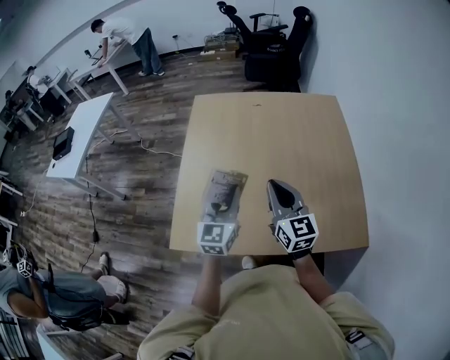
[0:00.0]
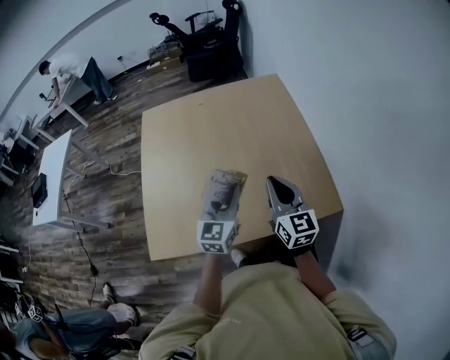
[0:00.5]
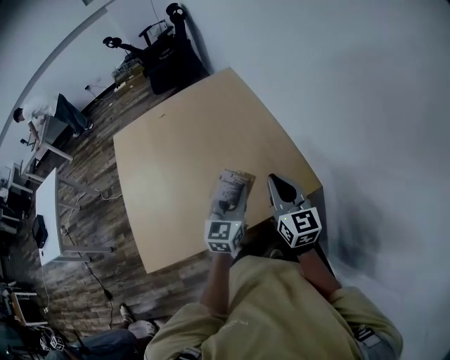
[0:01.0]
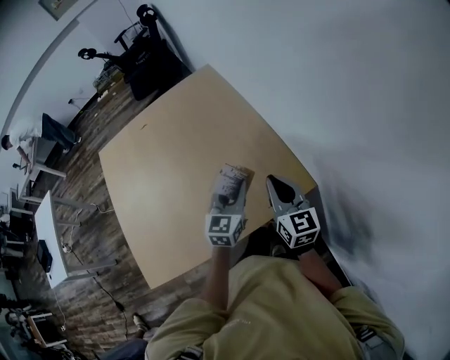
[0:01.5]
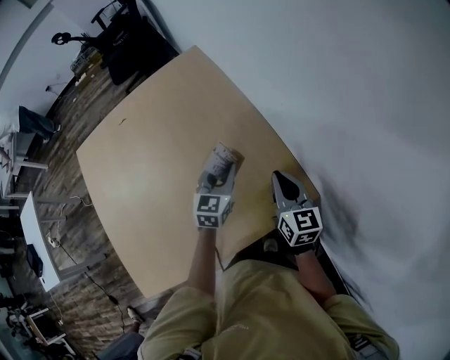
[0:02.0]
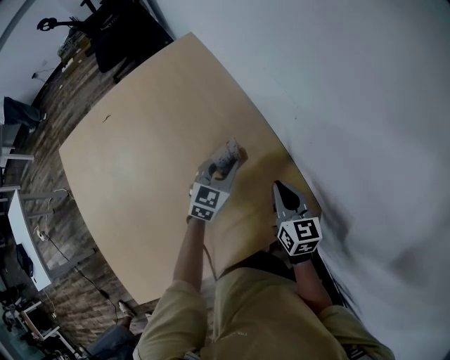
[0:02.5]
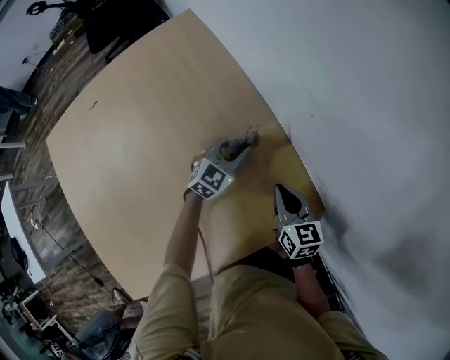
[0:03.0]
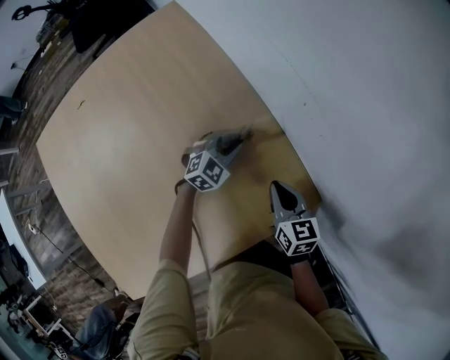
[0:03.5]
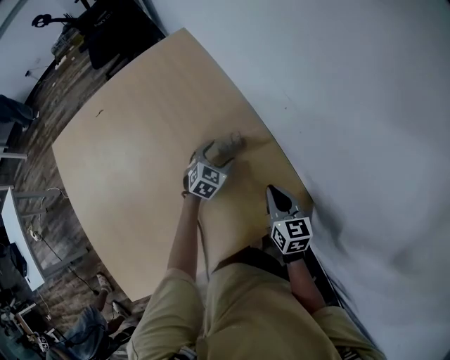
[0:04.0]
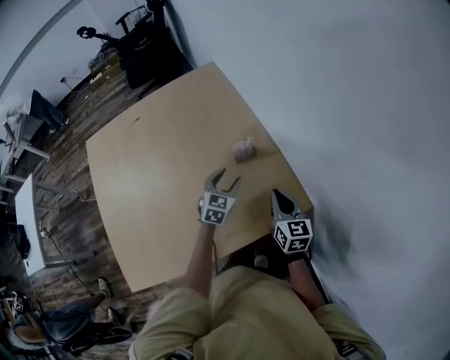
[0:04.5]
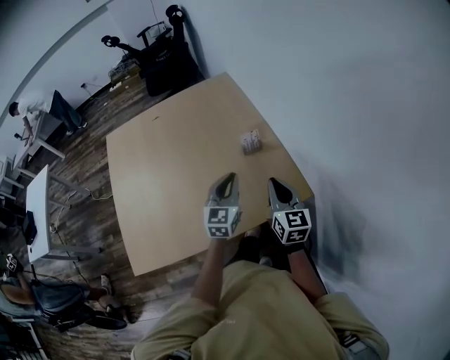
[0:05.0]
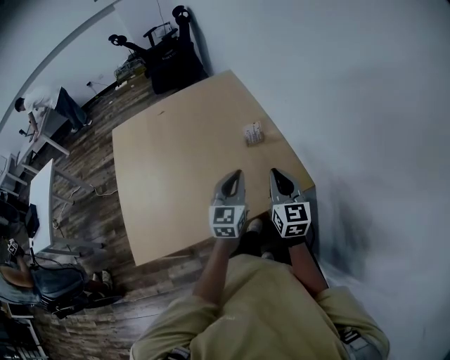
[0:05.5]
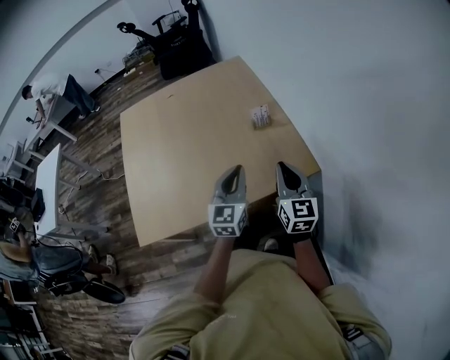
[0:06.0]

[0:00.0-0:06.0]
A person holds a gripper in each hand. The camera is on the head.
0.0 to 2.0 s: Both grippers are carried about 50 cm. The left gripper changes its angle by about 40 degrees; the right gripper swivels approximately 40 degrees.
2.0 to 4.0 s: The right gripper shifts about 10 cm downward, while the left gripper moves downward, about 15 cm, turns by about 30 degrees, and opens up.
4.0 to 6.0 s: The right gripper shifts approximately 30 cm backward and upward, and rotates about 30 degrees; the left gripper heads backward and upward, covering roughly 50 cm, tilts its fingers approximately 40 degrees upward, and closes its fingers.

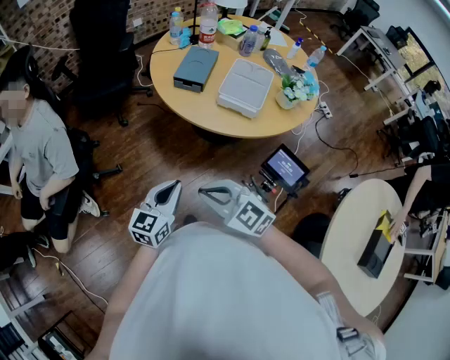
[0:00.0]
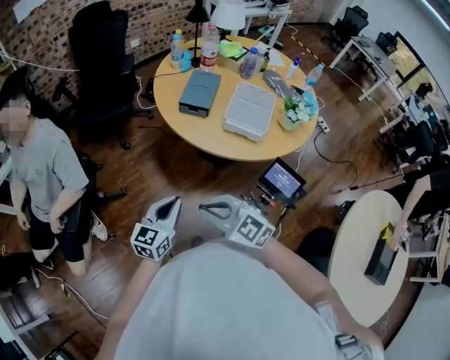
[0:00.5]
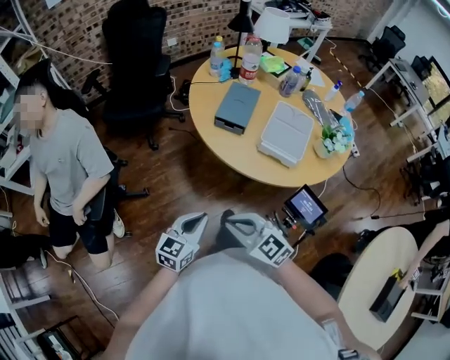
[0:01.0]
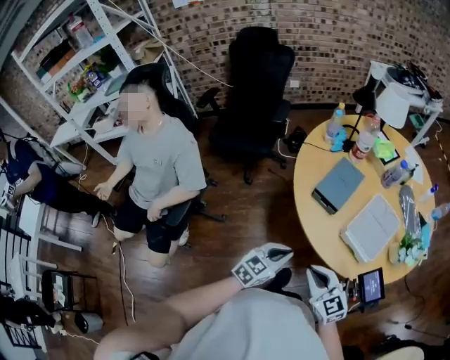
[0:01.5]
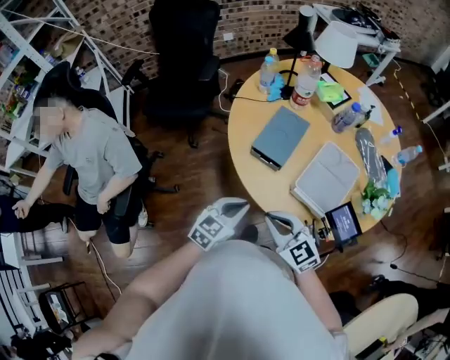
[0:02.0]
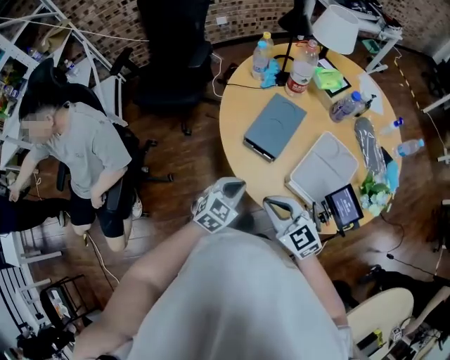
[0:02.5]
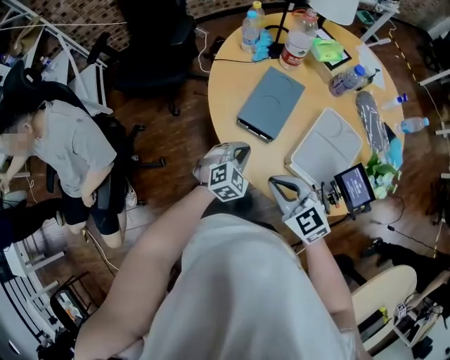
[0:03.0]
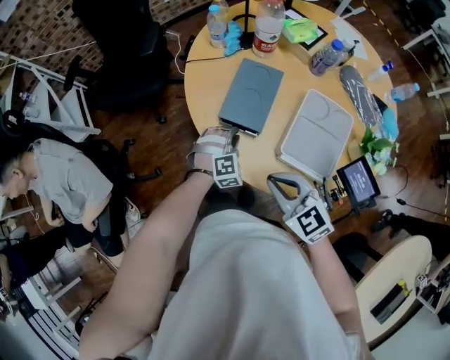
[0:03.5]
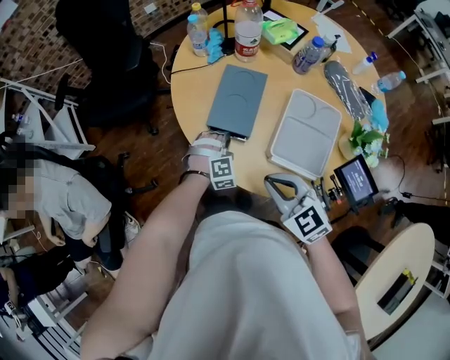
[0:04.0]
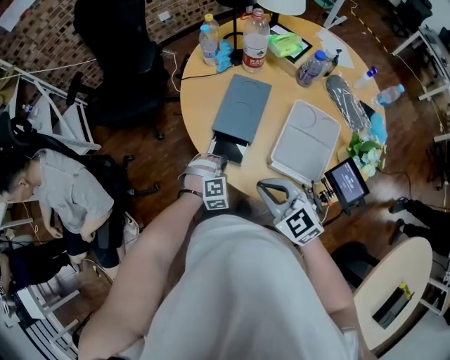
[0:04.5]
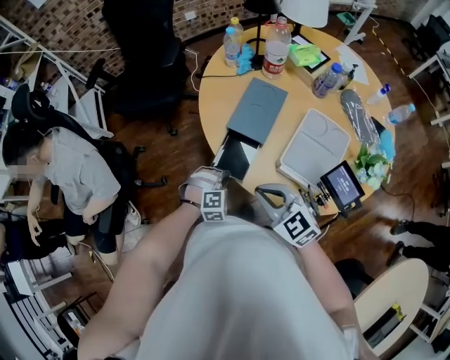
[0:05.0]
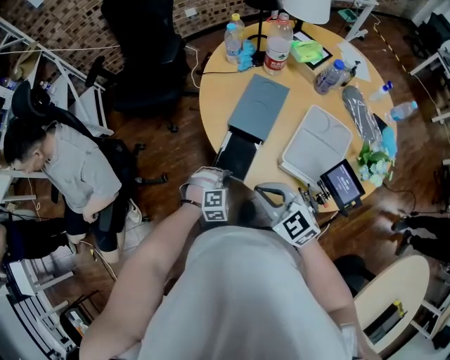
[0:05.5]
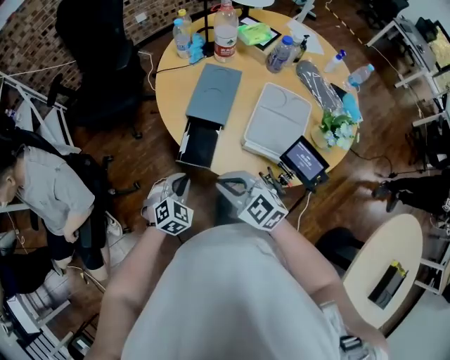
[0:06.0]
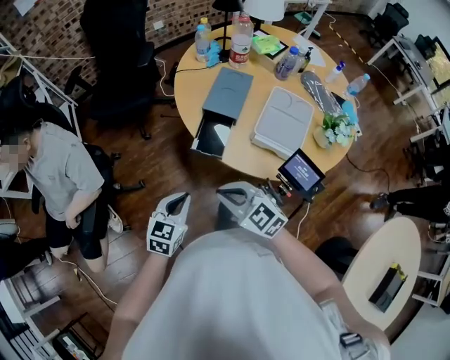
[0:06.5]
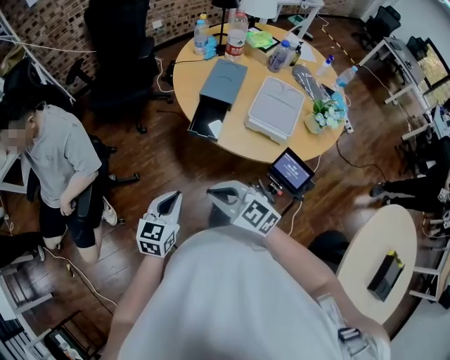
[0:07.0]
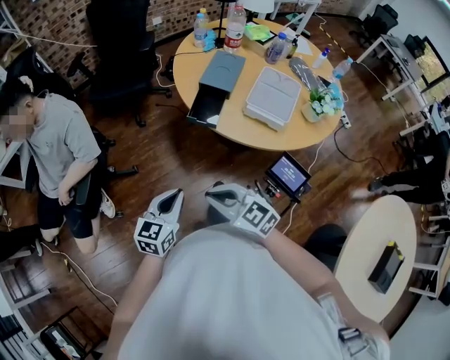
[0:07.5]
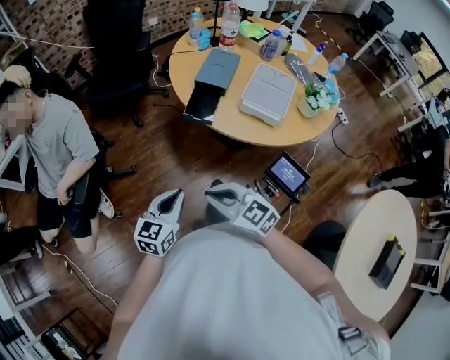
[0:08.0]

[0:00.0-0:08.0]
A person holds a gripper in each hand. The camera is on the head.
0.0 to 2.0 s: Both grippers travel together forward, about 25 cm.
2.0 to 4.0 s: The right gripper heads to the right and forward, covering some 10 cm. Meanwhile the left gripper travels forward, downward and to the right by approximately 25 cm, and twists about 70 degrees clockwise, seen from behind.
4.0 to 6.0 s: The left gripper shifts about 20 cm backward, to the left and upward, and rotates approximately 40 degrees, while the right gripper travels to the left by about 10 cm.
6.0 to 8.0 s: The left gripper is displaced backward, upward and to the left by some 30 cm, and twists about 40 degrees counterclockwise, seen from behind. The right gripper moves backward and to the left, approximately 25 cm.

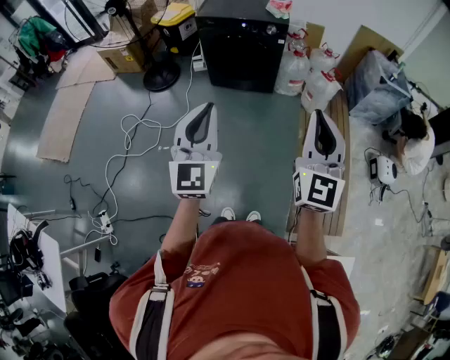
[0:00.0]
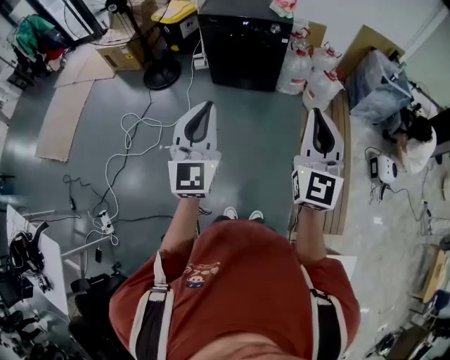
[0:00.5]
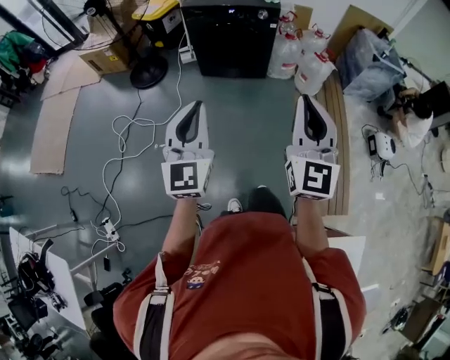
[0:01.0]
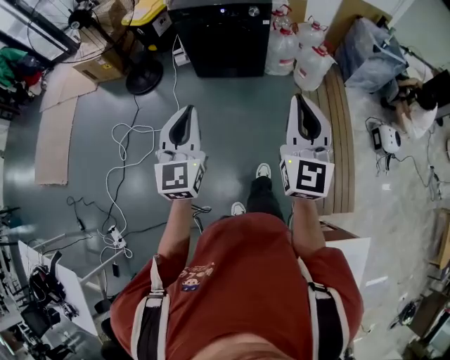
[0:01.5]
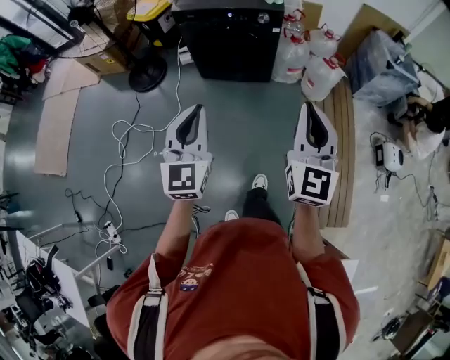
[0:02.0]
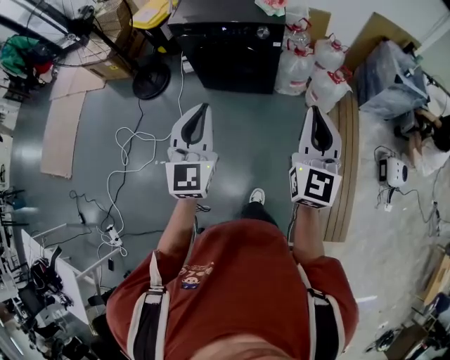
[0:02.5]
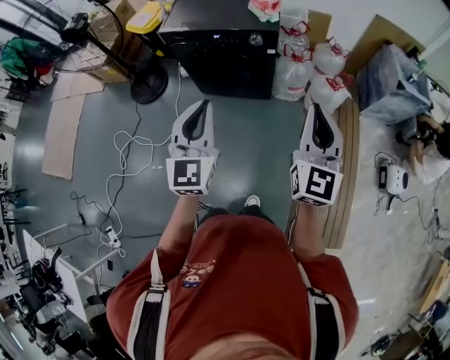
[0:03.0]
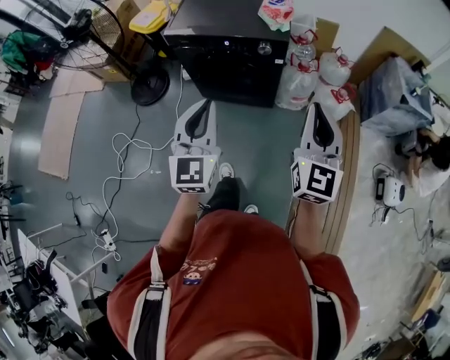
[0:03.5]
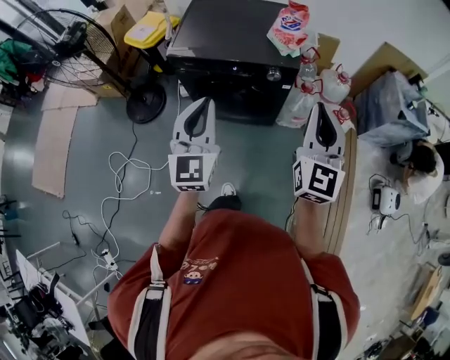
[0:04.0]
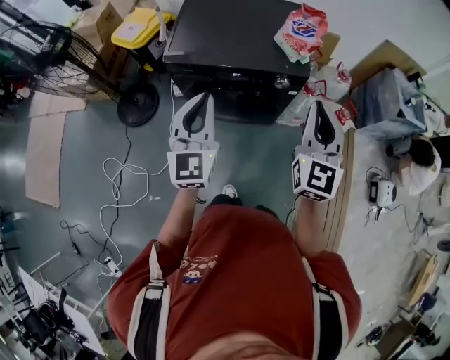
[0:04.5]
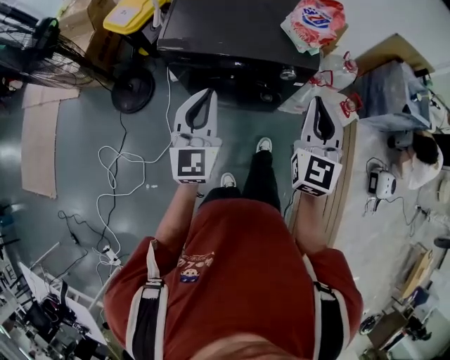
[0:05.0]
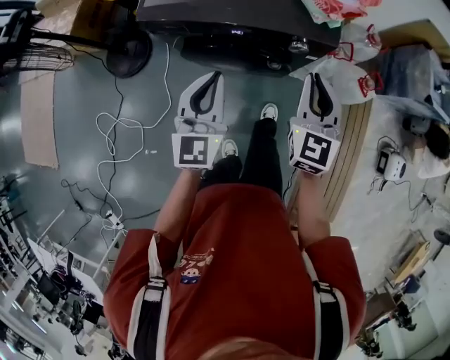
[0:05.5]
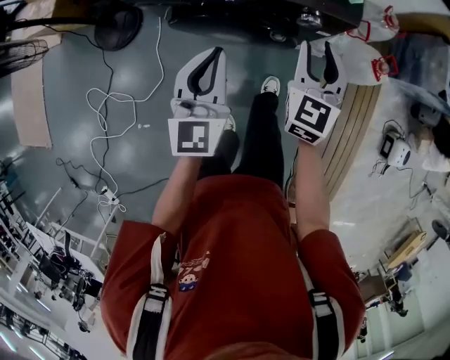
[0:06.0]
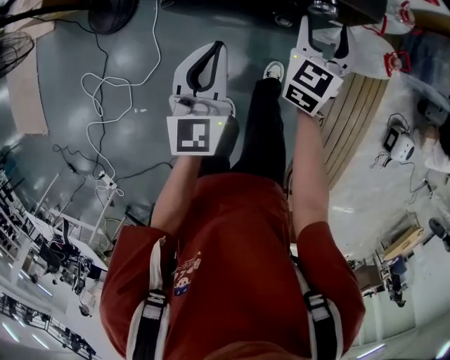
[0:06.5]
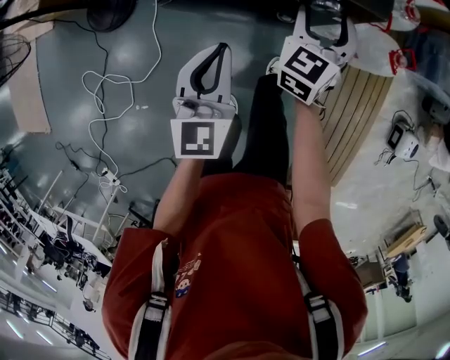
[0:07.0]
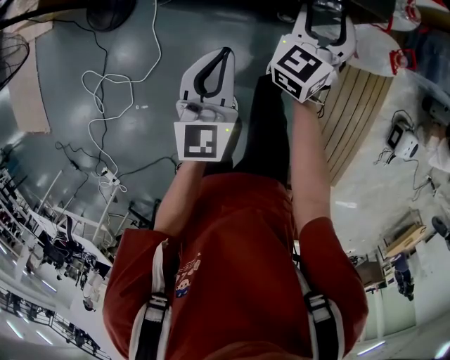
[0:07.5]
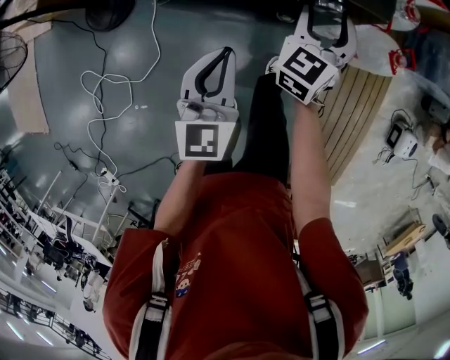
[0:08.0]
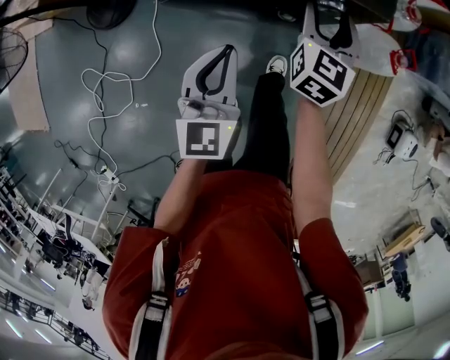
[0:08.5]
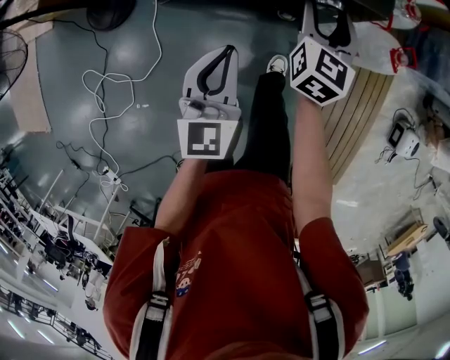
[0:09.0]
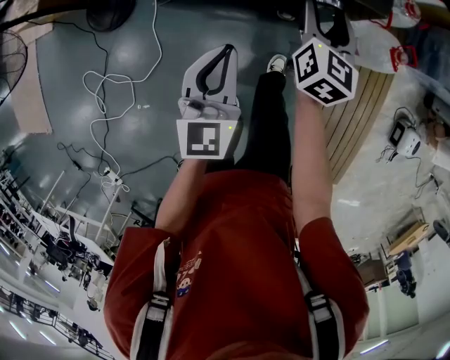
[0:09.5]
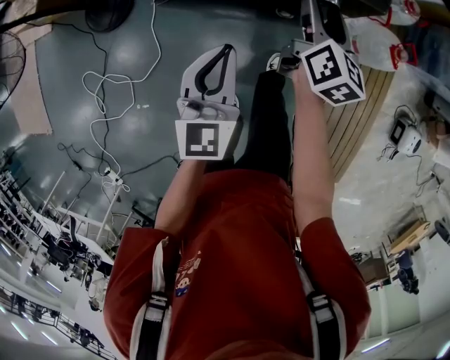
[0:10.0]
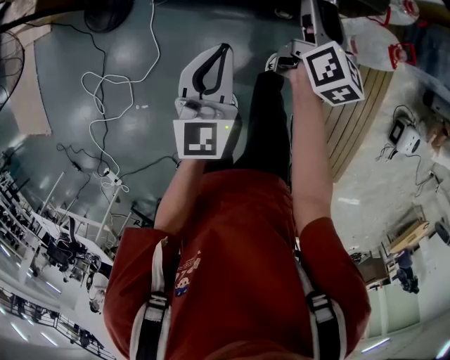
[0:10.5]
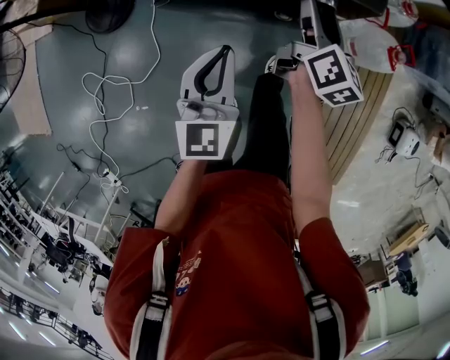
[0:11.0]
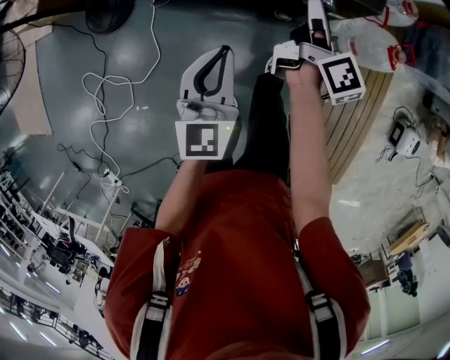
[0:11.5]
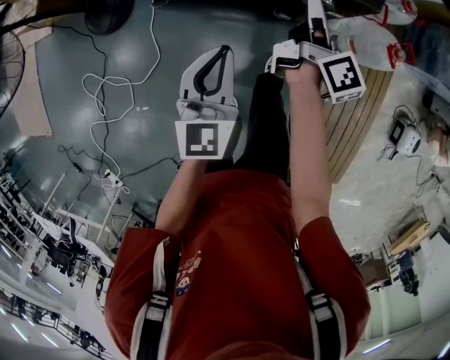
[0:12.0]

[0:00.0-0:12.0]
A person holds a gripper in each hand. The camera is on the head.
0.0 to 2.0 s: Both grippers move forward, about 25 cm.
2.0 to 4.0 s: The pair of grippers is taken forward, approximately 40 cm.
4.0 to 6.0 s: Both grippers move downward and forward, some 40 cm. The right gripper turns by roughly 20 degrees, and opens.
6.0 to 8.0 s: The left gripper travels downward by roughly 10 cm. Meanwhile the right gripper moves downward and forward, about 10 cm.
8.0 to 10.0 s: The right gripper rolls clockwise, seen from behind, by about 50 degrees.
10.0 to 12.0 s: The right gripper swivels approximately 40 degrees.

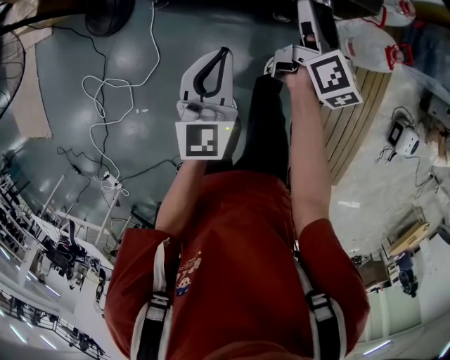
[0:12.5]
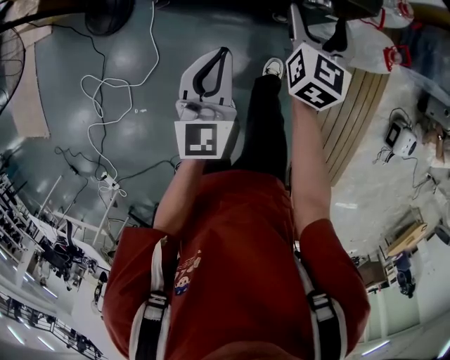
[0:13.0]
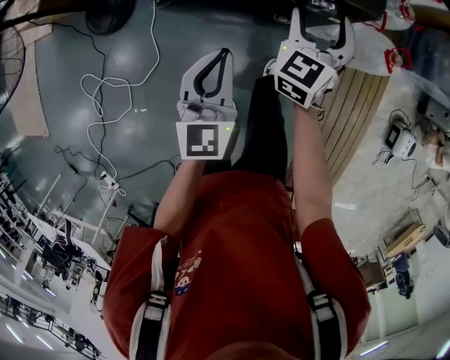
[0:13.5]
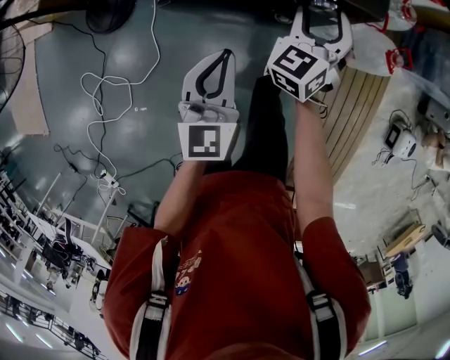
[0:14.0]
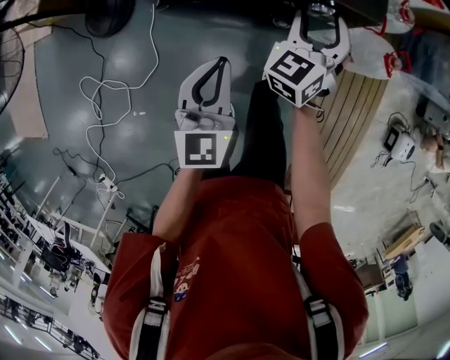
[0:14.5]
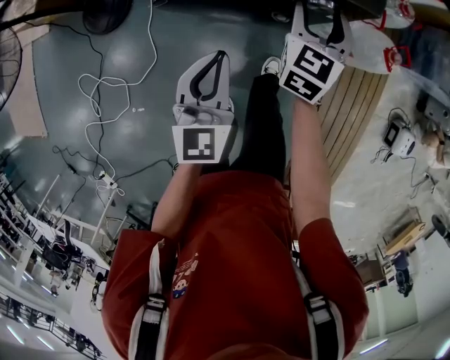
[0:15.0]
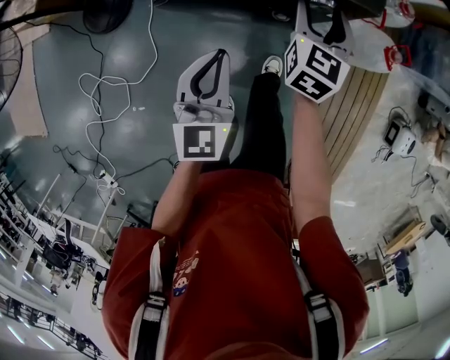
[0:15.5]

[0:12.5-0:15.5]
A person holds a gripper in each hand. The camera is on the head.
12.5 to 14.0 s: The right gripper rolls counterclockwise, seen from behind, by roughly 70 degrees.
14.0 to 15.5 s: The right gripper rotates some 30 degrees.
